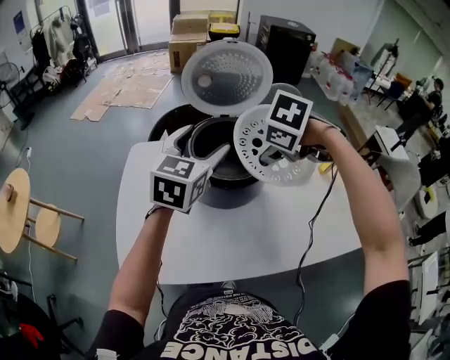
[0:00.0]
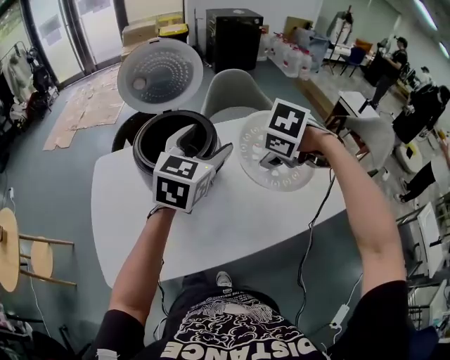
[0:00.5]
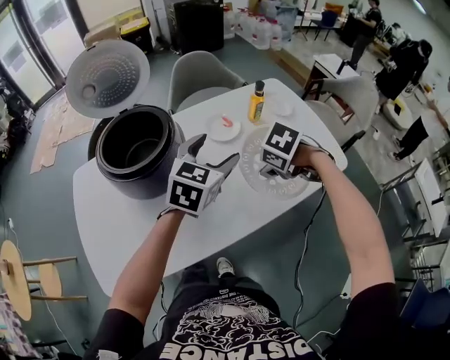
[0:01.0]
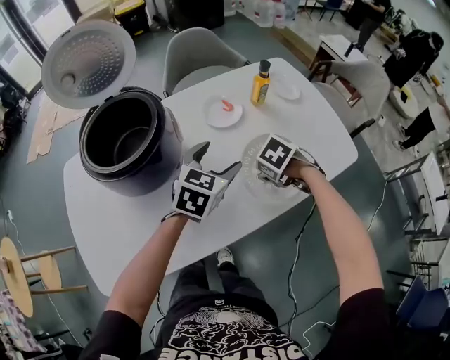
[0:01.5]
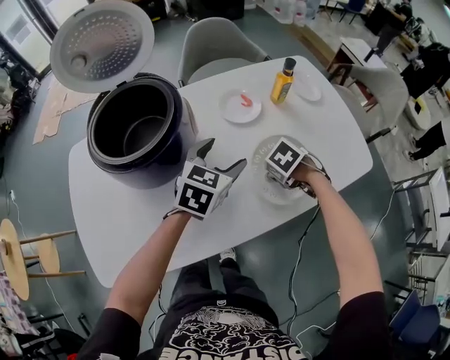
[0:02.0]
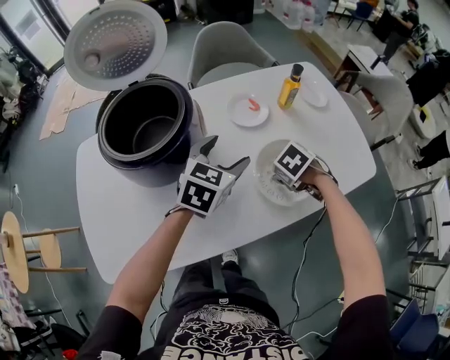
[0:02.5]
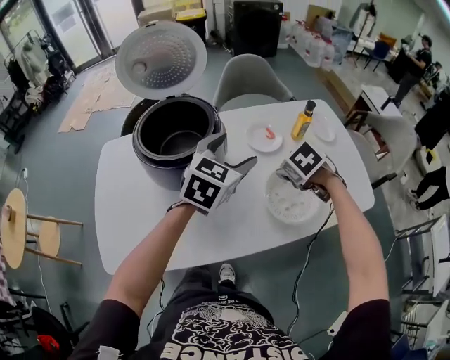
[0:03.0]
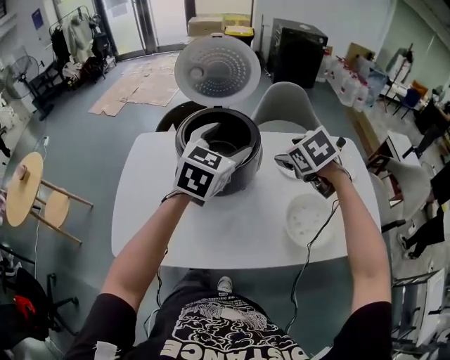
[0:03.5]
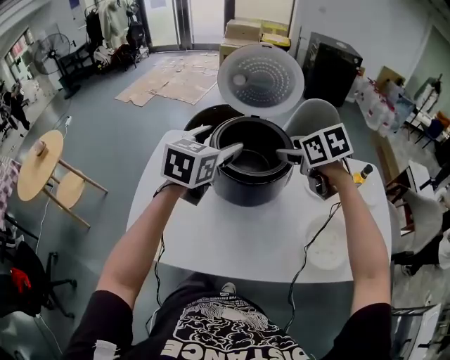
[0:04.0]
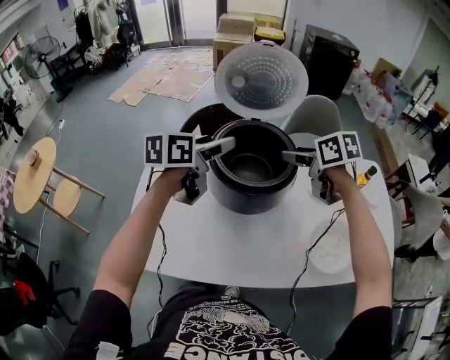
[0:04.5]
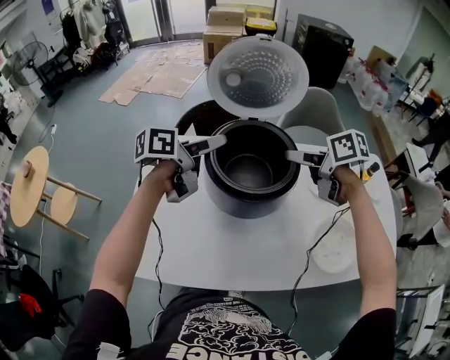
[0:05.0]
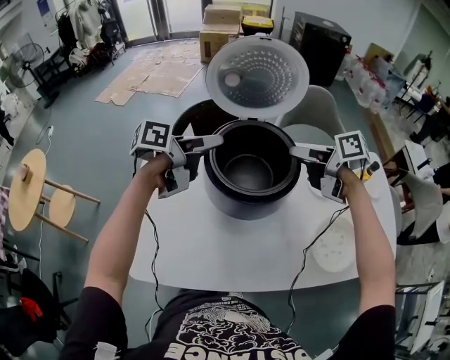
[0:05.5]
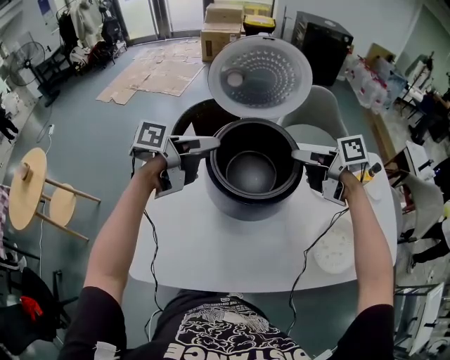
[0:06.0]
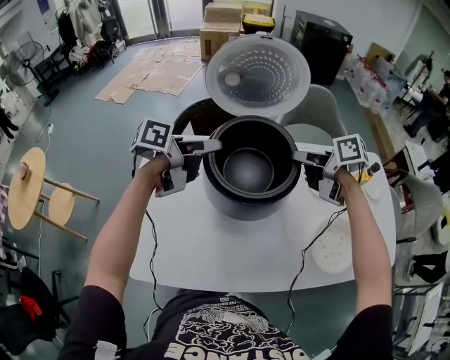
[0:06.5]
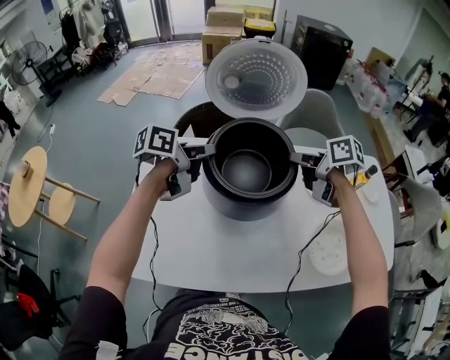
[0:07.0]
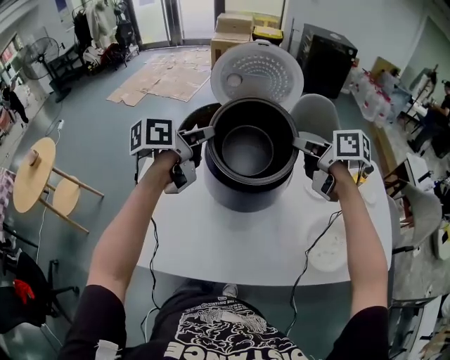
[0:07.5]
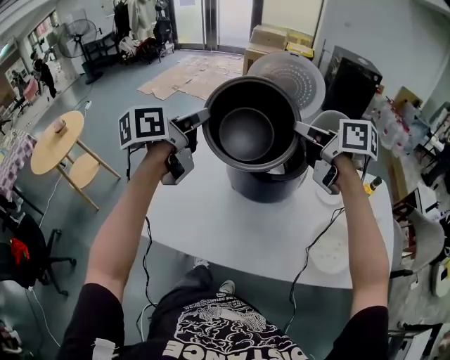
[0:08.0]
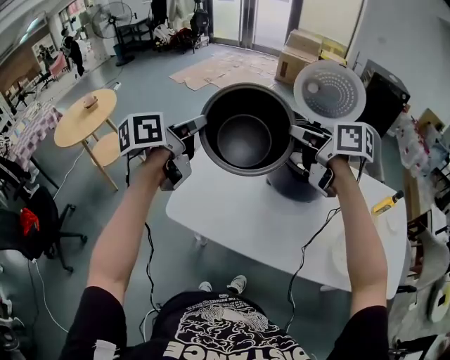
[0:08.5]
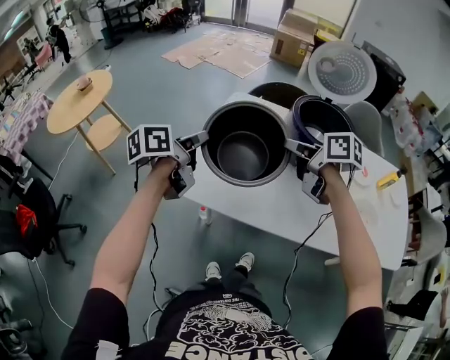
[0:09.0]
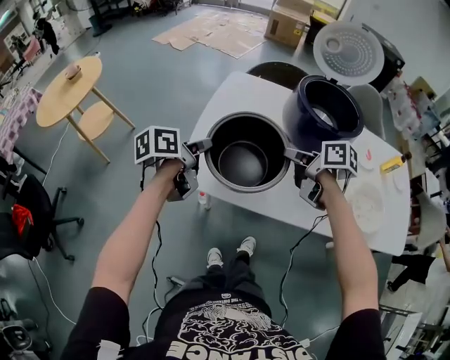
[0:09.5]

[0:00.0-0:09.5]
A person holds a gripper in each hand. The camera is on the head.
0:00.0 to 0:02.0: The left gripper shifts by roughly 40 cm, and turns by about 30 degrees; the right gripper shifts by roughly 50 cm, and swivels approximately 40 degrees.
0:02.0 to 0:04.0: The right gripper goes about 30 cm upward, and tilts its fingers some 40 degrees upward, while the left gripper moves approximately 40 cm, and changes its angle by roughly 30 degrees.
0:04.0 to 0:05.5: The left gripper moves forward and downward, approximately 15 cm, and twists about 50 degrees counterclockwise, seen from behind. Meanwhile the right gripper travels forward by about 10 cm, and twists about 40 degrees clockwise, seen from behind.
0:05.5 to 0:07.5: The two grippers go about 5 cm upward. The left gripper turns by about 20 degrees, and closes up, while the right gripper closes its fingers.
0:07.5 to 0:09.5: Both grippers are carried to the left and backward, roughly 40 cm. The left gripper turns by approximately 20 degrees.

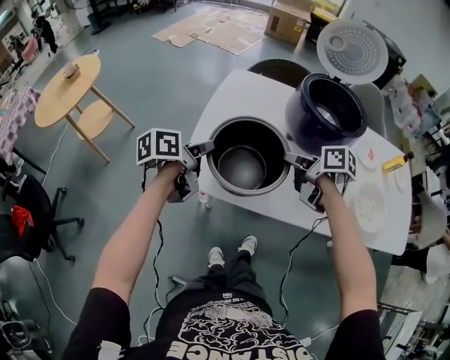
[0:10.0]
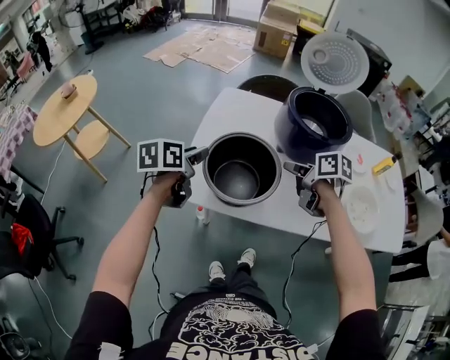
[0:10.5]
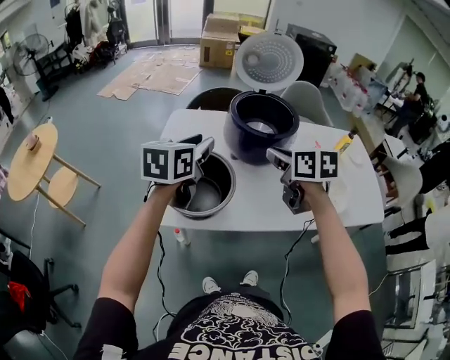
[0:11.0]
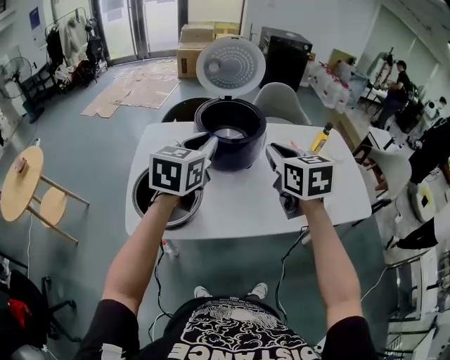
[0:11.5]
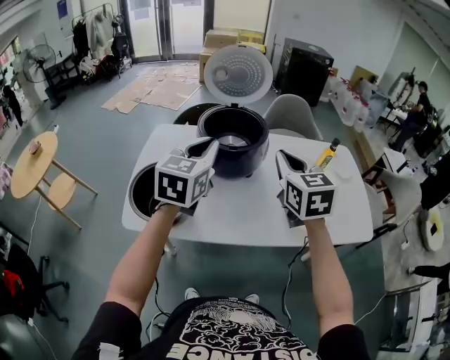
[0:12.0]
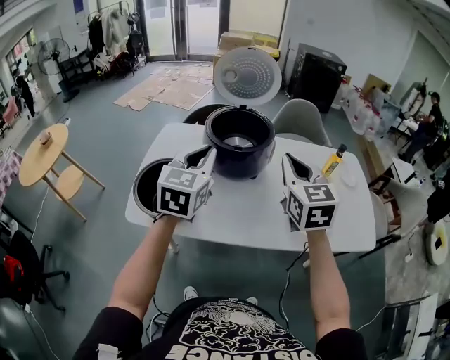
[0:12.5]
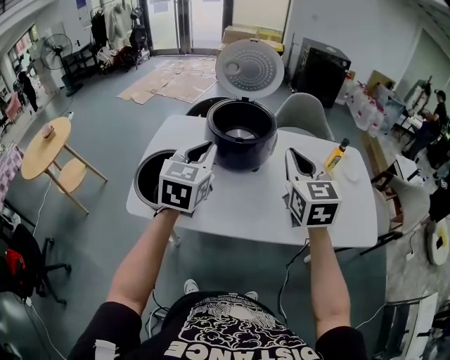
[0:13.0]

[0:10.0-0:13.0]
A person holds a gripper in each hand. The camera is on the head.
0:10.0 to 0:11.5: The two grippers go about 35 cm to the right and upward. The right gripper turns by some 60 degrees; the left gripper twists about 60 degrees clockwise, seen from behind.
0:11.5 to 0:13.0: The right gripper moves to the right, approximately 10 cm; the left gripper moves to the right, some 5 cm.

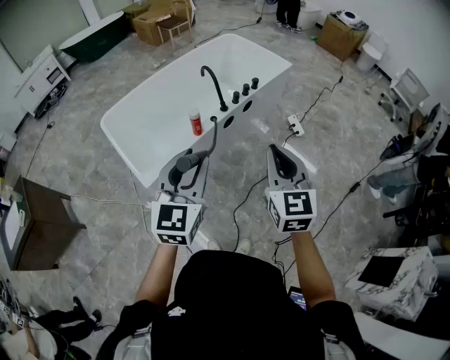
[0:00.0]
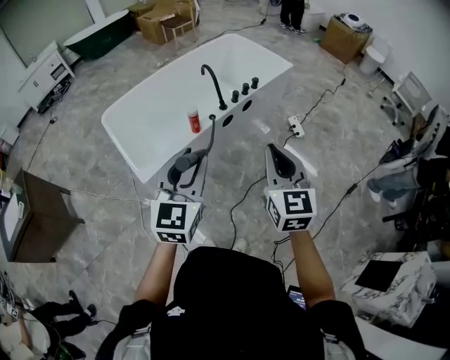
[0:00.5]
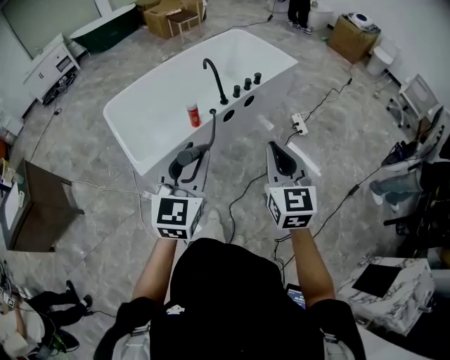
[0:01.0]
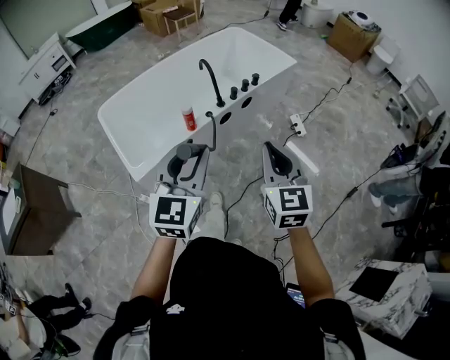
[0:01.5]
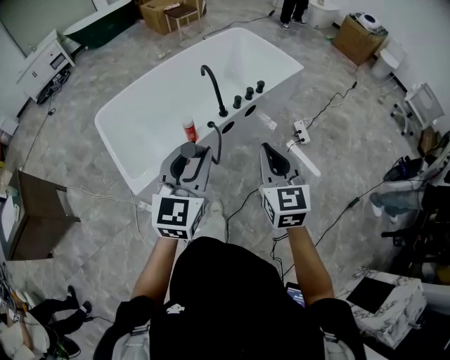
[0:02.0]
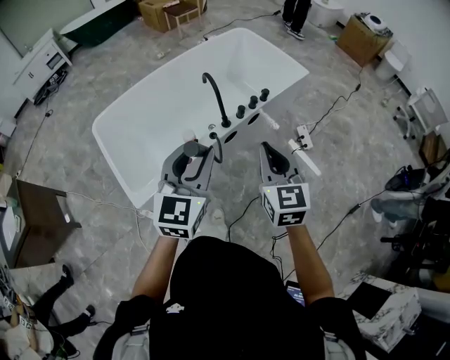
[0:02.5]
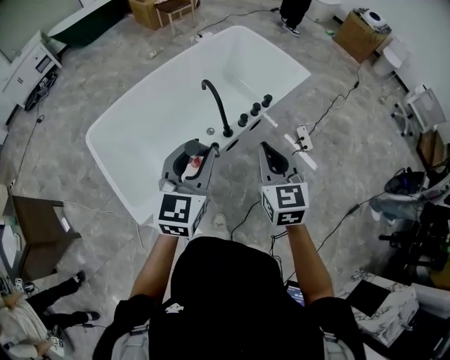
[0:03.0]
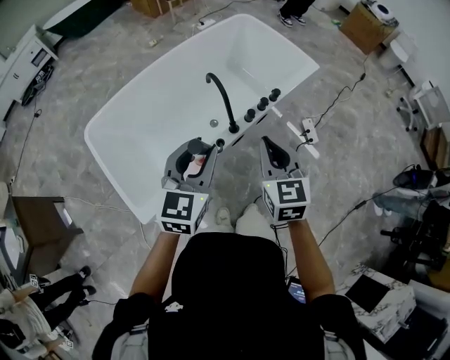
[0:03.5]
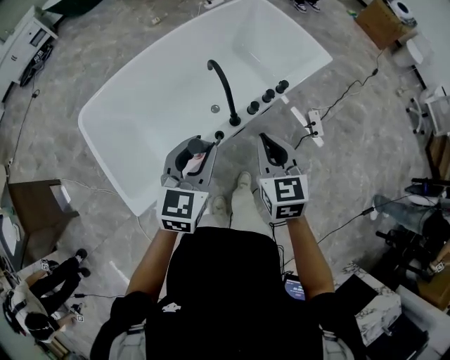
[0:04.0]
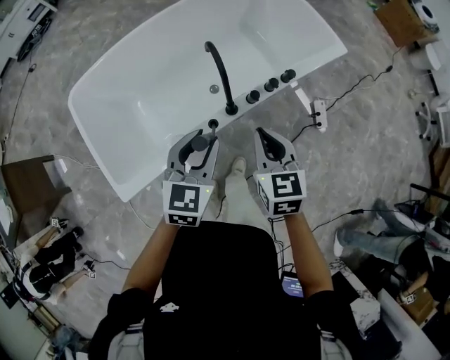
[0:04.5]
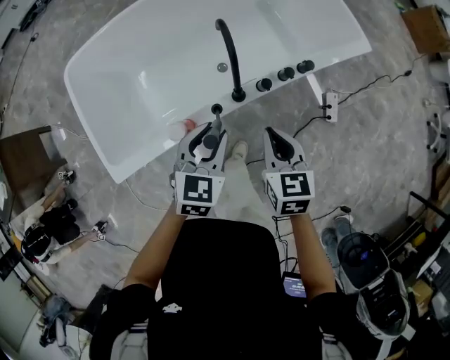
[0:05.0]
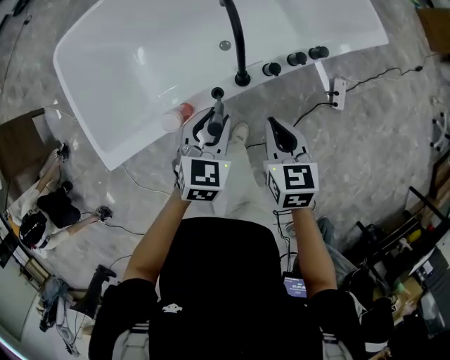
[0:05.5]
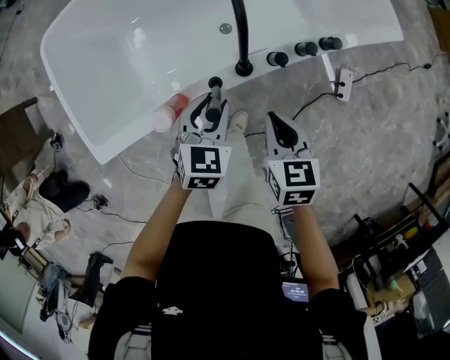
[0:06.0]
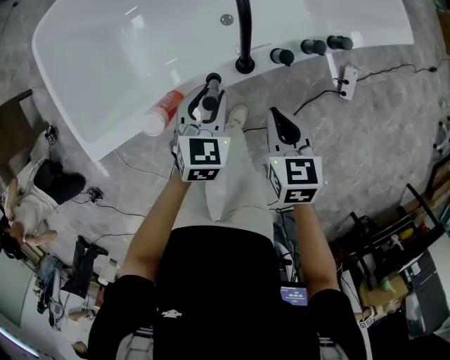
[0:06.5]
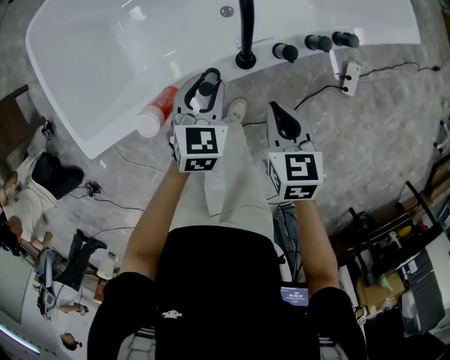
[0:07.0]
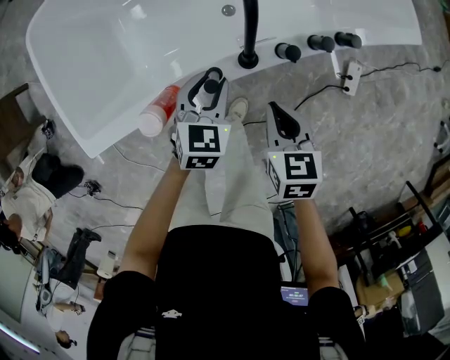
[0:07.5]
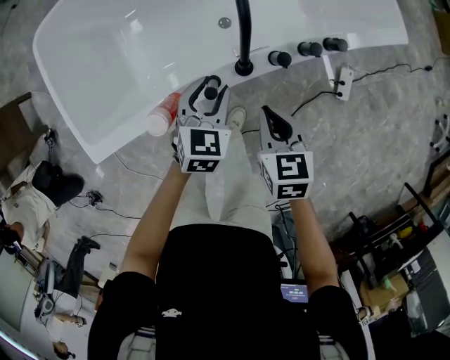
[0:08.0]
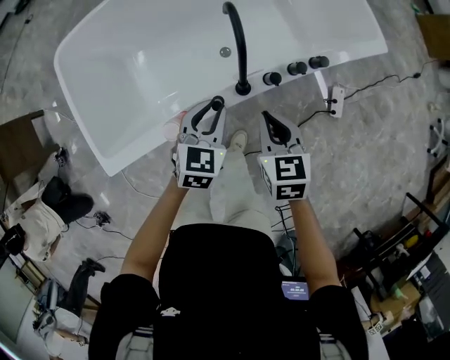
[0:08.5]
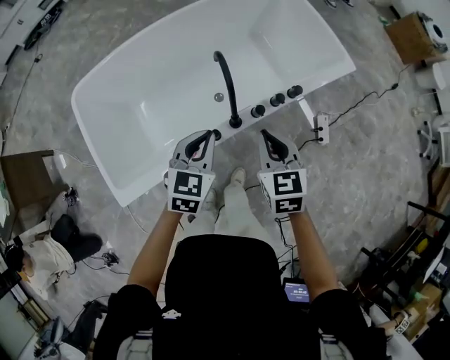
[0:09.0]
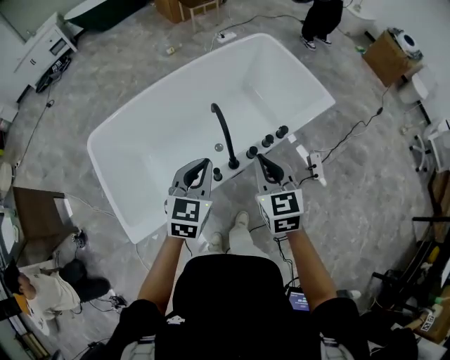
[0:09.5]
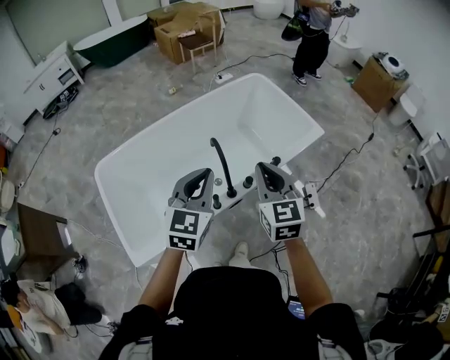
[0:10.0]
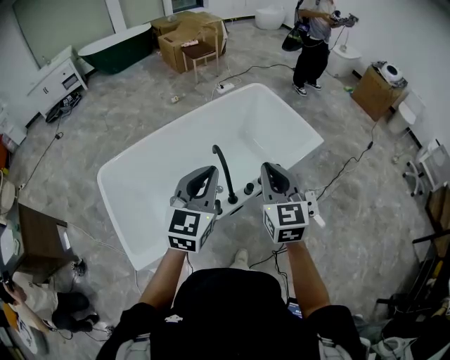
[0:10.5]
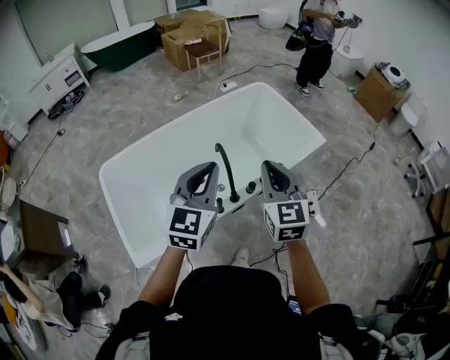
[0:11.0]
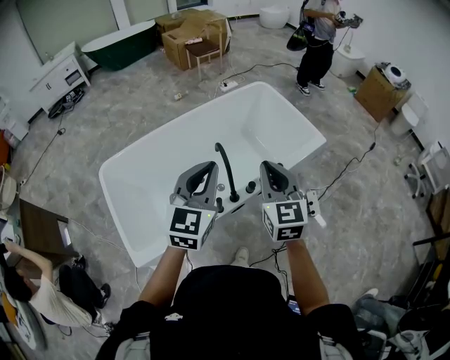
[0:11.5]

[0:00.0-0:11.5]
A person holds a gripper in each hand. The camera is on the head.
0:00.0 to 0:02.0: The grippers both shift forward by some 15 cm.
0:02.0 to 0:04.0: Both grippers move forward, about 30 cm.
0:04.0 to 0:06.0: The grippers both shift downward by about 30 cm. The right gripper rotates approximately 30 degrees. The left gripper swivels approximately 30 degrees.
0:06.0 to 0:07.5: Both grippers travel together downward, approximately 5 cm.
0:07.5 to 0:09.5: The grippers both shift upward by about 35 cm. The left gripper rotates roughly 20 degrees, and closes its fingers. Meanwhile the right gripper turns by some 30 degrees.
0:09.5 to 0:11.5: The two grippers go approximately 15 cm upward.

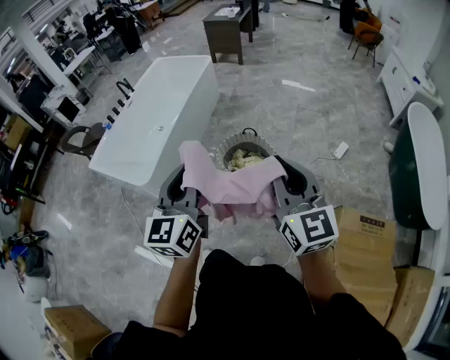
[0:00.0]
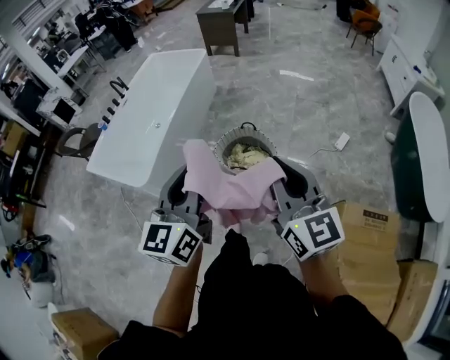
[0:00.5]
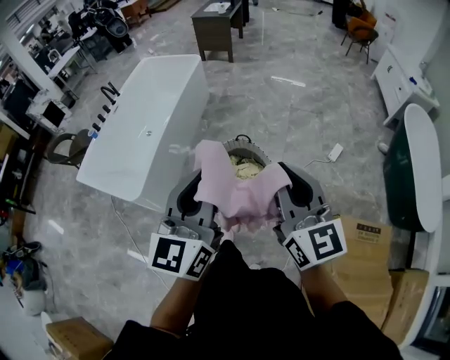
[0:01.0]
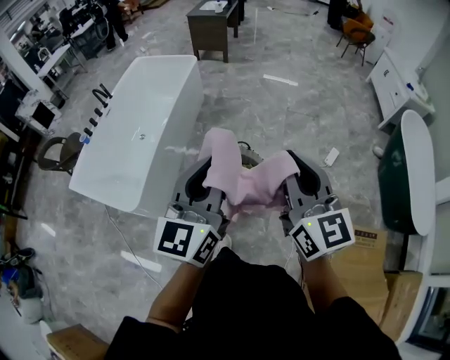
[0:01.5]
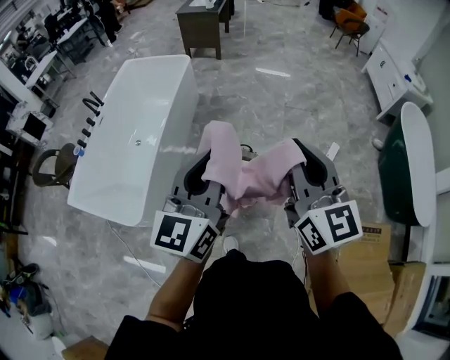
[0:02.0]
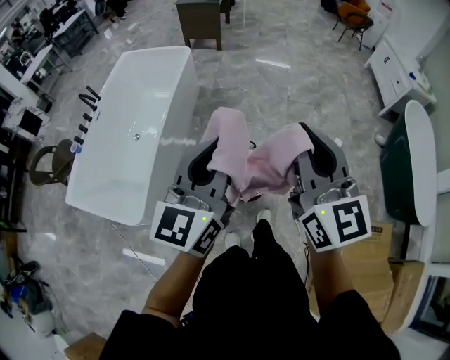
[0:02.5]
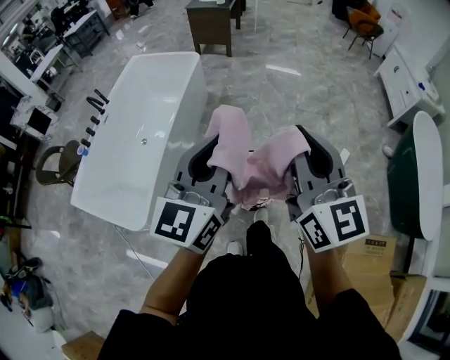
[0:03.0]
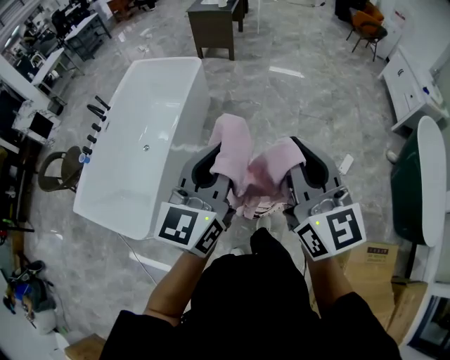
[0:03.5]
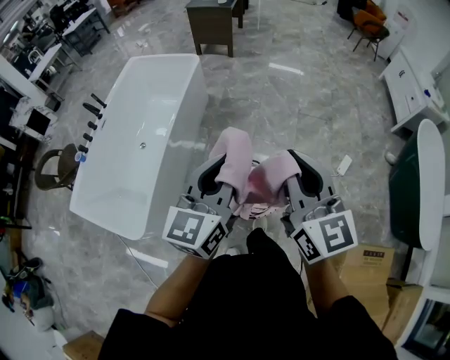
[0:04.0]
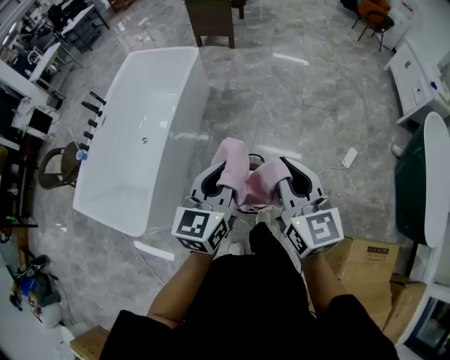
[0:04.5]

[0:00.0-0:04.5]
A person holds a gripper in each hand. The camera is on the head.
0:00.0 to 0:02.0: The two grippers go approximately 30 cm forward.
0:02.0 to 0:04.5: The grippers both shift forward and downward by roughly 25 cm.
